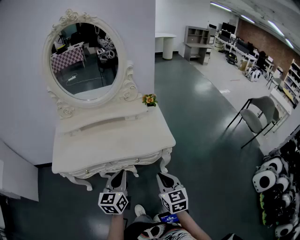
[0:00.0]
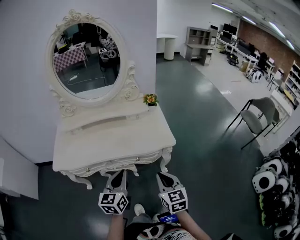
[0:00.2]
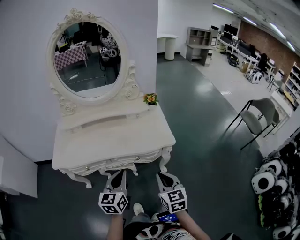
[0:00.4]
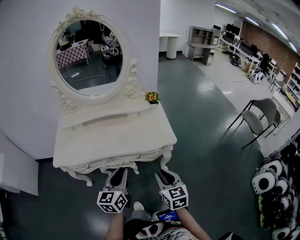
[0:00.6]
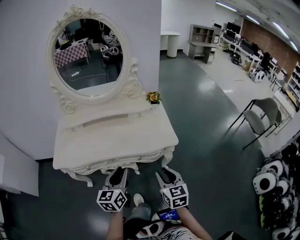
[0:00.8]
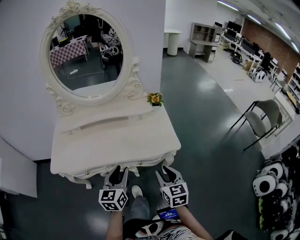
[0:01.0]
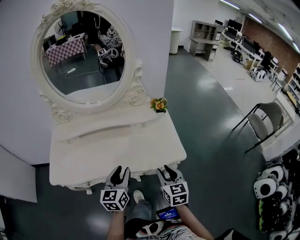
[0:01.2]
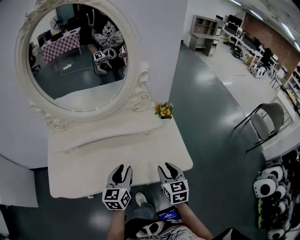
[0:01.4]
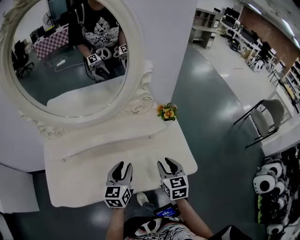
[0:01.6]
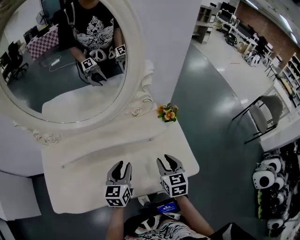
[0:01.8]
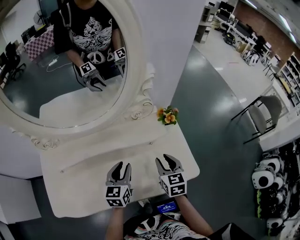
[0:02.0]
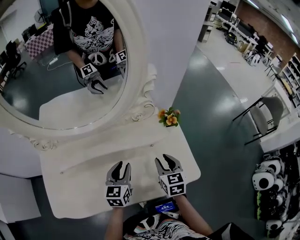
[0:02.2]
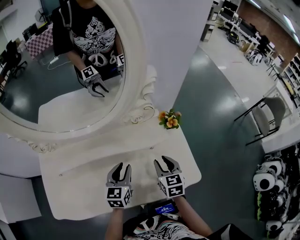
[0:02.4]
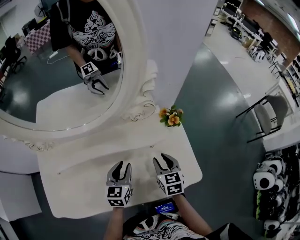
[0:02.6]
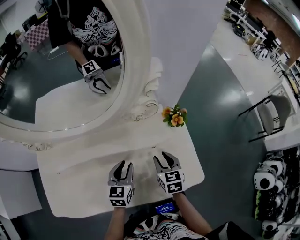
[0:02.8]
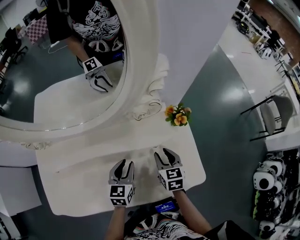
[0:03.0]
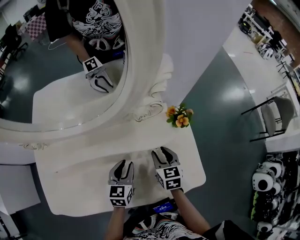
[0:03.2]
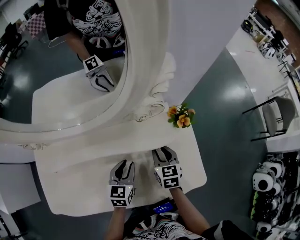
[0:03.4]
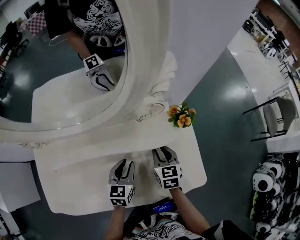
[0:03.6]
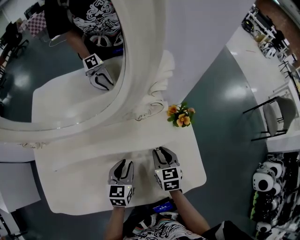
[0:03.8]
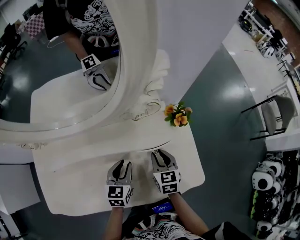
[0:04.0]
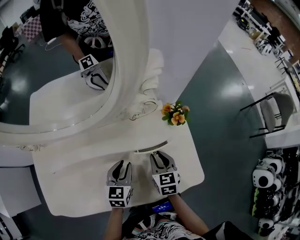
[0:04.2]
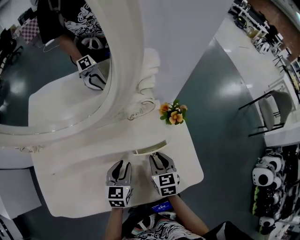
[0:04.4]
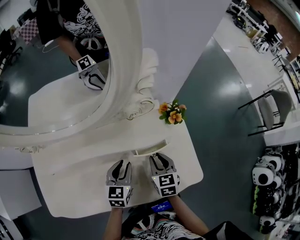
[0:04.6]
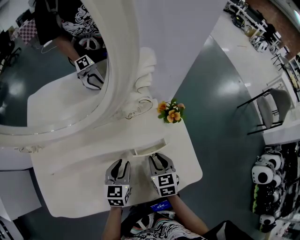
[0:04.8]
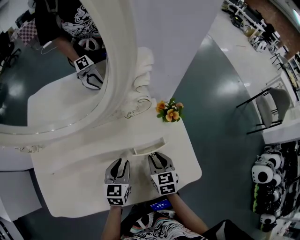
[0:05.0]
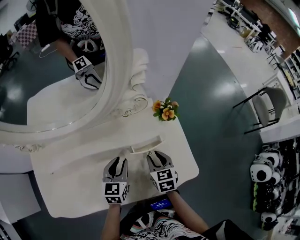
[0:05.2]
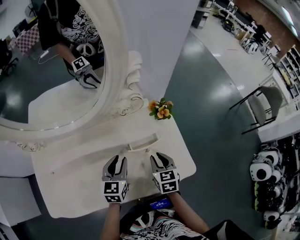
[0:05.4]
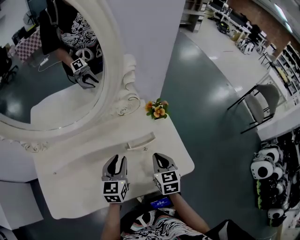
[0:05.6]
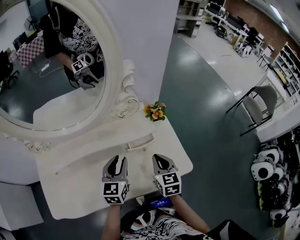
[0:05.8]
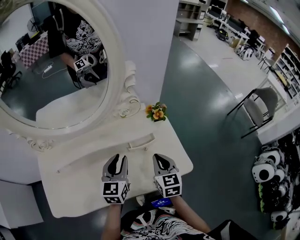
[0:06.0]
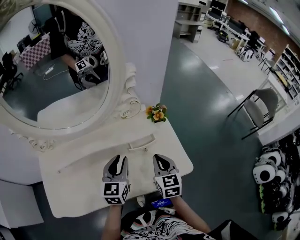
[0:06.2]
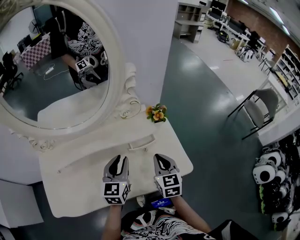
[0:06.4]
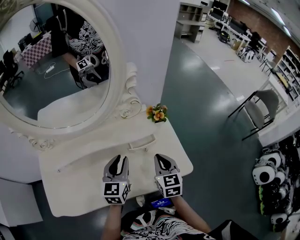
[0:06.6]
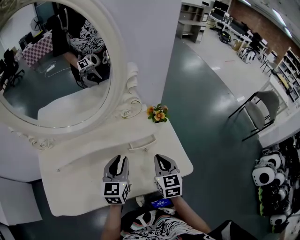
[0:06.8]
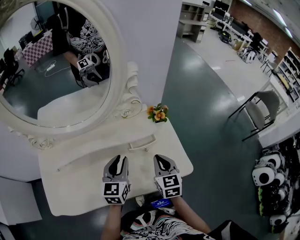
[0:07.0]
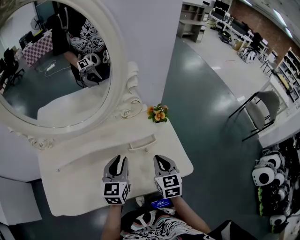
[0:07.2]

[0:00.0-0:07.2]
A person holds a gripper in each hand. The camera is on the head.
0:00.0 to 0:01.4: Both grippers move forward, roughly 25 cm. The right gripper opens up. The left gripper opens.
0:01.4 to 0:02.8: Both grippers move forward and downward, about 20 cm.
0:02.8 to 0:04.4: The grippers make only small movements.
0:04.4 to 0:05.8: The right gripper heads upward and backward, covering some 10 cm, and closes. The left gripper travels upward by some 10 cm.
0:05.8 to 0:07.2: The grippers make only small movements.

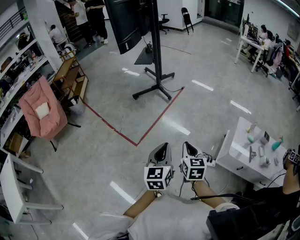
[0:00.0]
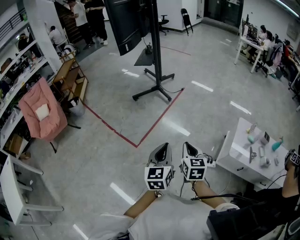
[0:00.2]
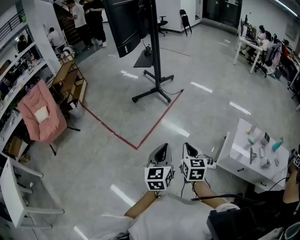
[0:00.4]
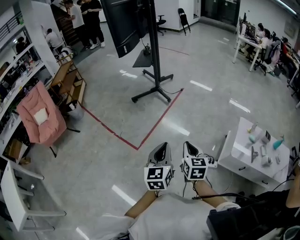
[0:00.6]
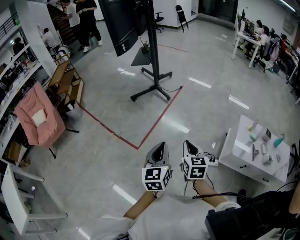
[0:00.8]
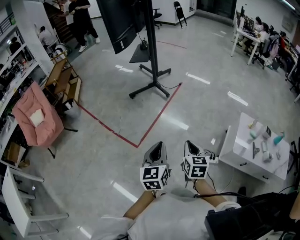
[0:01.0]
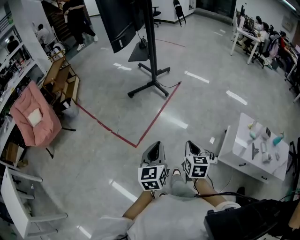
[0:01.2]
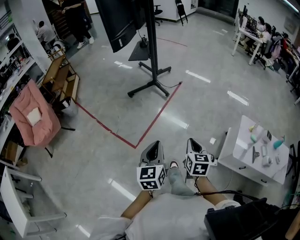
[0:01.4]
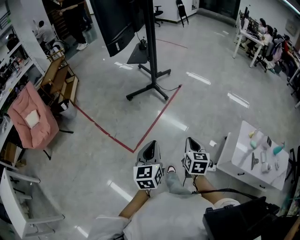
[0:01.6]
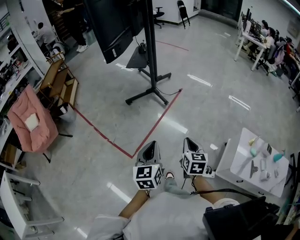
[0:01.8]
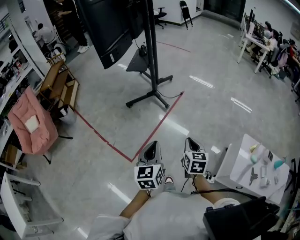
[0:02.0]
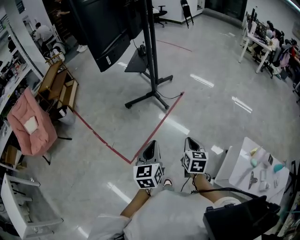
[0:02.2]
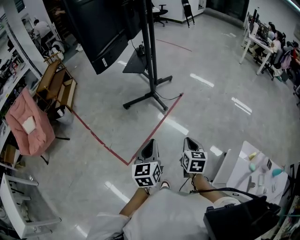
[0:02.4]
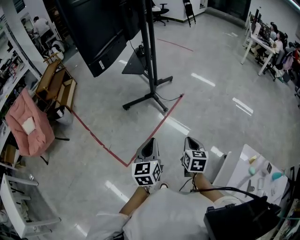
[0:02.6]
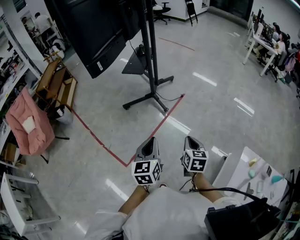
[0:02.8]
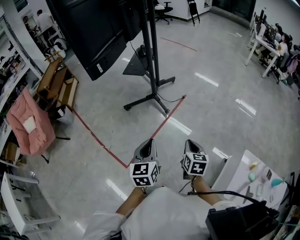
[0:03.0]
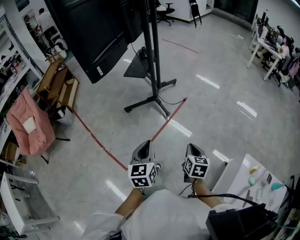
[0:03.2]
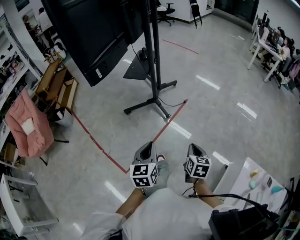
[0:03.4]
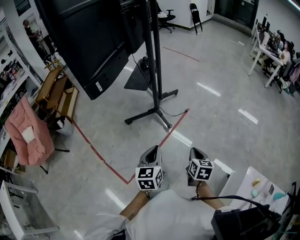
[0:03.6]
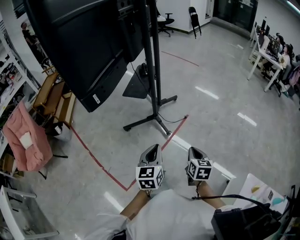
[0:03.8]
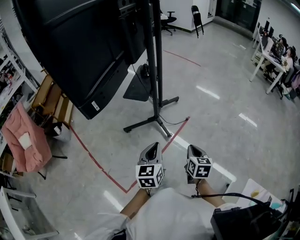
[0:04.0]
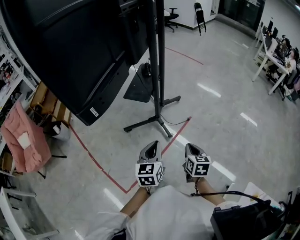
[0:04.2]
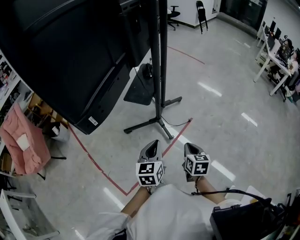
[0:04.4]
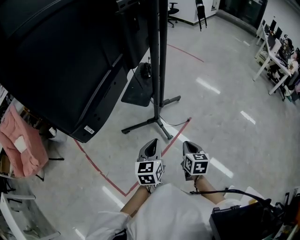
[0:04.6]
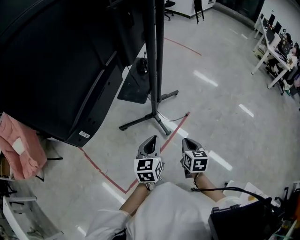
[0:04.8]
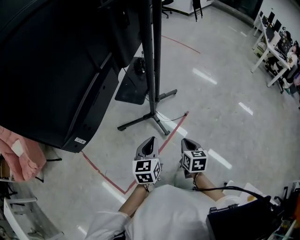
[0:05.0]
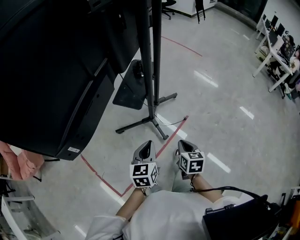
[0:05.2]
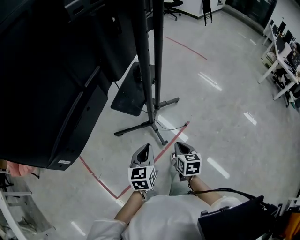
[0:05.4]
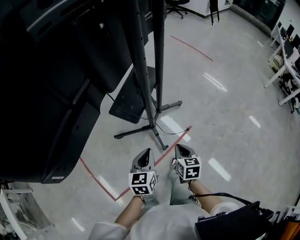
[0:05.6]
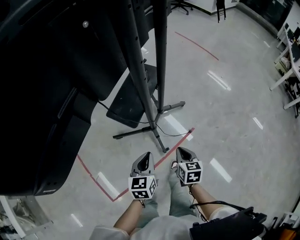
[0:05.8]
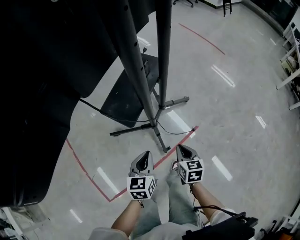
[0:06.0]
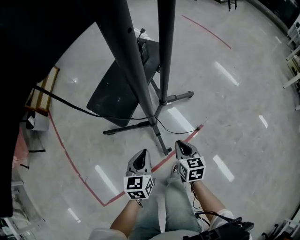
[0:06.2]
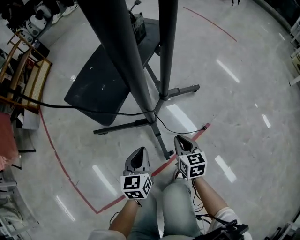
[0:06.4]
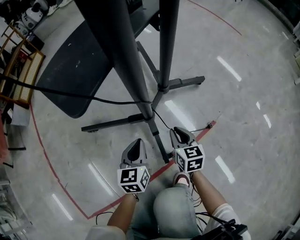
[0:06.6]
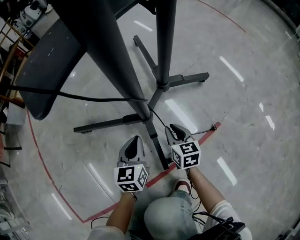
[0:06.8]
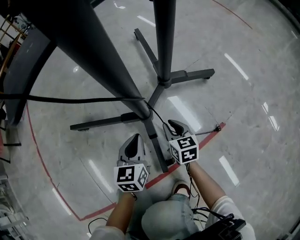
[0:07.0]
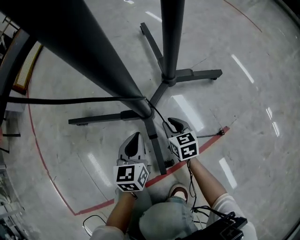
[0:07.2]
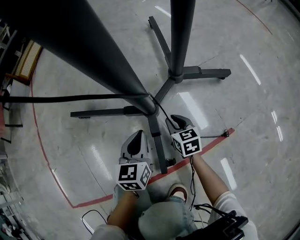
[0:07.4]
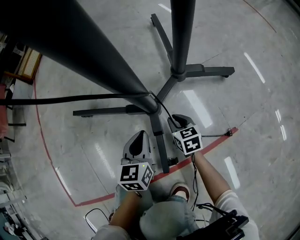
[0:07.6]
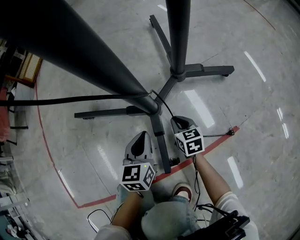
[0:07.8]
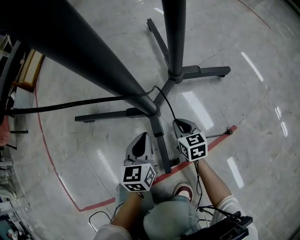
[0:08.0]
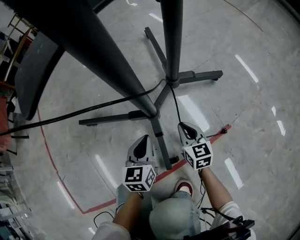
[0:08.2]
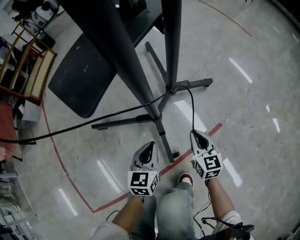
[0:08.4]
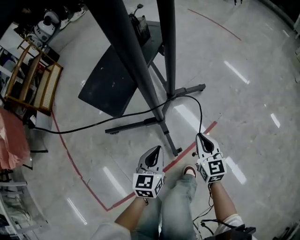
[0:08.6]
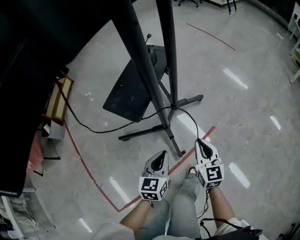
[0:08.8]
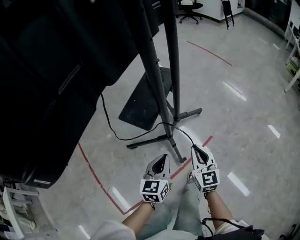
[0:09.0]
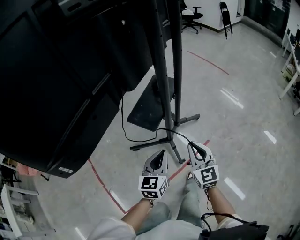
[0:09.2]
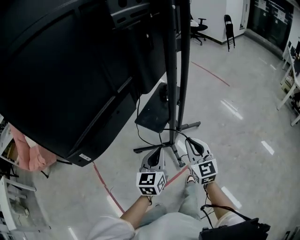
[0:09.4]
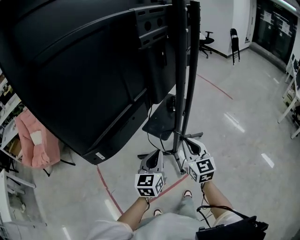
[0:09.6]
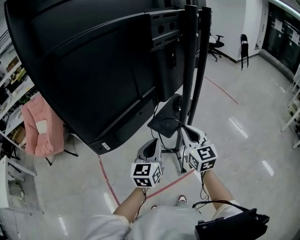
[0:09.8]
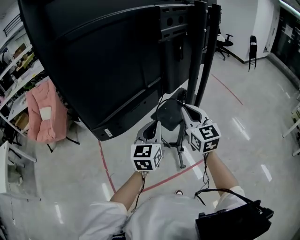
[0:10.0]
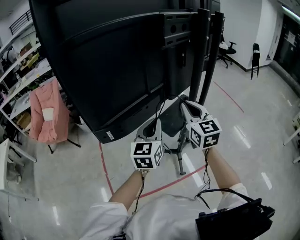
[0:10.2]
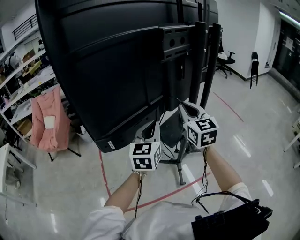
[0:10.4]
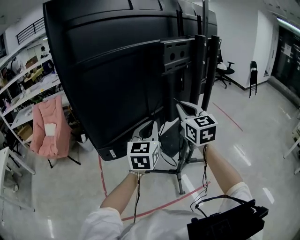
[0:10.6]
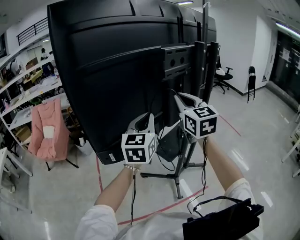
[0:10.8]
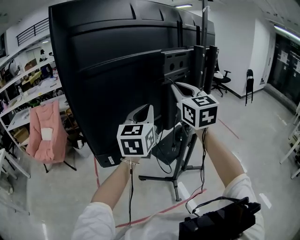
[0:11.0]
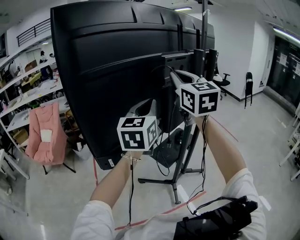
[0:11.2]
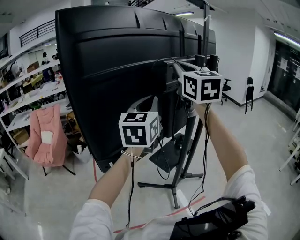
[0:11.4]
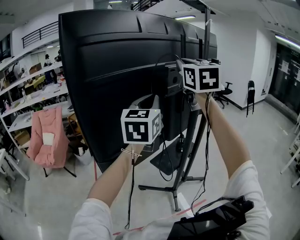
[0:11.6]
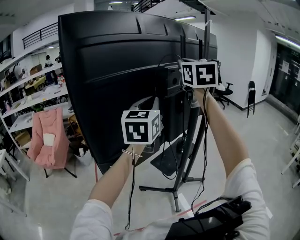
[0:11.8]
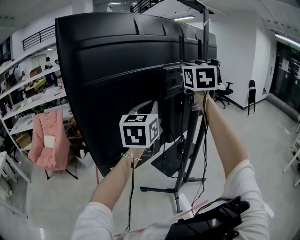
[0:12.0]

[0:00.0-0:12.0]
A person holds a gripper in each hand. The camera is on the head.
0:00.0 to 0:01.6: The right gripper goes approximately 15 cm forward. Meanwhile the left gripper goes roughly 20 cm forward and to the left.
0:01.6 to 0:03.0: Both grippers move forward, roughly 25 cm.
0:03.0 to 0:04.4: Both grippers travel together forward, about 35 cm.
0:04.4 to 0:06.0: The grippers both shift forward and downward by roughly 35 cm.
0:06.0 to 0:07.6: The two grippers go some 60 cm downward. The right gripper turns by approximately 30 degrees.
0:07.6 to 0:09.0: Both grippers move upward, roughly 60 cm. The right gripper swivels about 40 degrees, while the left gripper swivels approximately 20 degrees.
0:09.0 to 0:10.4: The grippers both shift upward and to the left by some 50 cm. The left gripper rotates some 30 degrees, while the right gripper turns by about 30 degrees.
0:10.4 to 0:12.0: Both grippers travel together upward, roughly 25 cm.

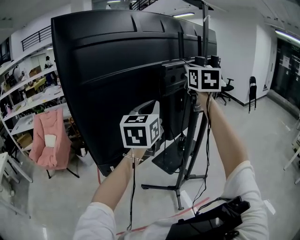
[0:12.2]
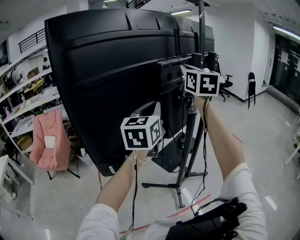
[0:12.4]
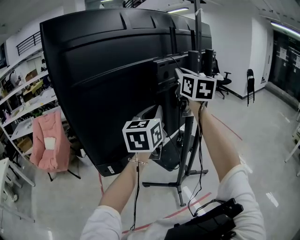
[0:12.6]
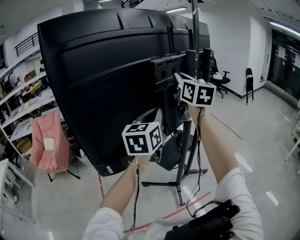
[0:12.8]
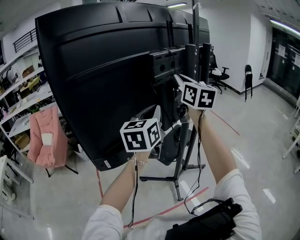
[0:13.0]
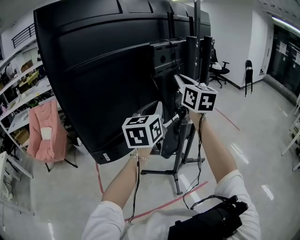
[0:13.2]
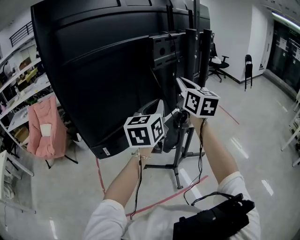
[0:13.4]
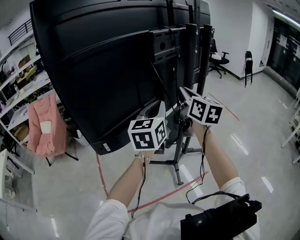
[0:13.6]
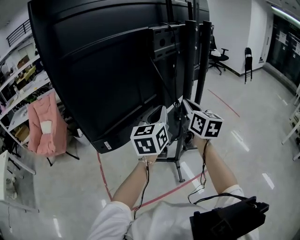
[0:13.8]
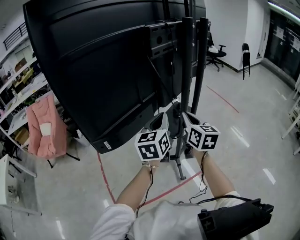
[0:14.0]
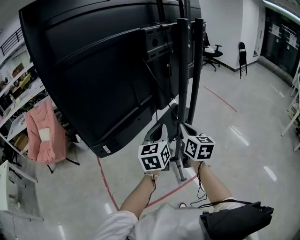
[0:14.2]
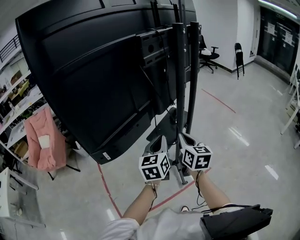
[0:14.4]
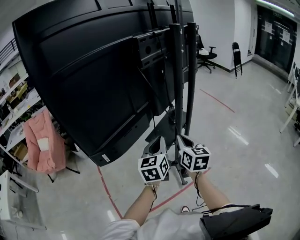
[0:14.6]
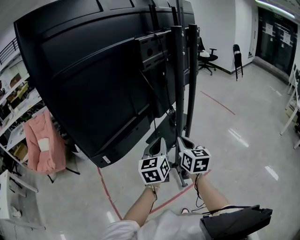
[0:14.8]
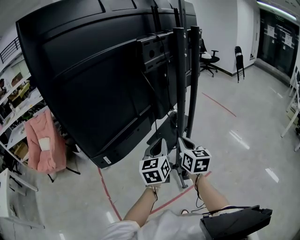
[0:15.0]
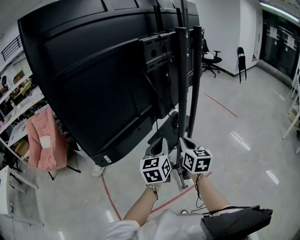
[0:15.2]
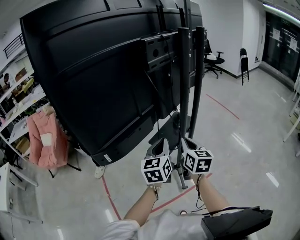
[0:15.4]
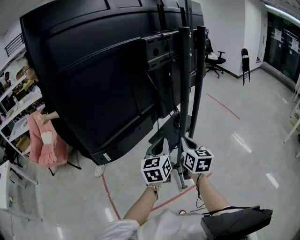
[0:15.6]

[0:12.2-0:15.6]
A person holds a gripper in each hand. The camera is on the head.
0:12.2 to 0:13.8: The left gripper heads downward, covering roughly 15 cm. The right gripper shifts some 25 cm downward, and changes its angle by approximately 30 degrees.
0:13.8 to 0:15.6: Both grippers move downward, approximately 10 cm.

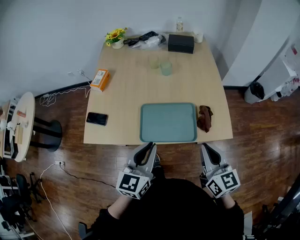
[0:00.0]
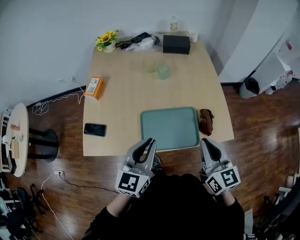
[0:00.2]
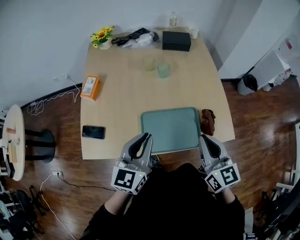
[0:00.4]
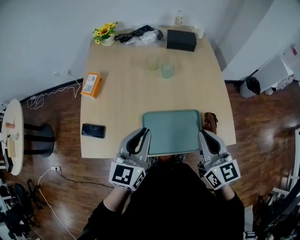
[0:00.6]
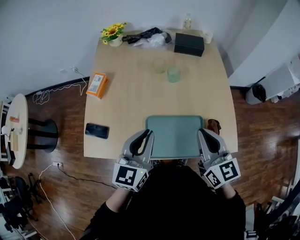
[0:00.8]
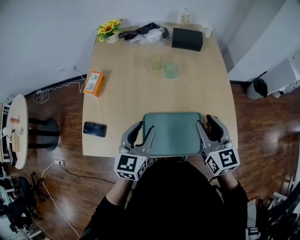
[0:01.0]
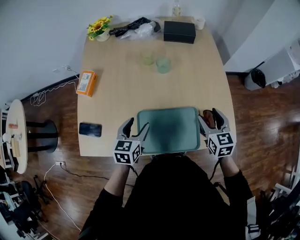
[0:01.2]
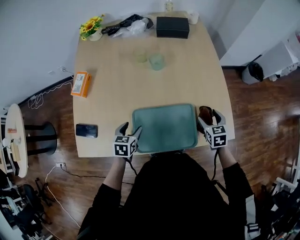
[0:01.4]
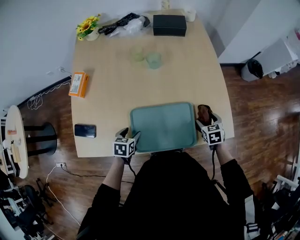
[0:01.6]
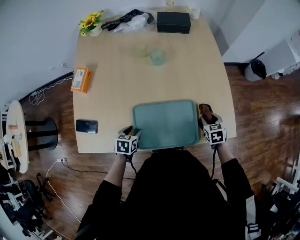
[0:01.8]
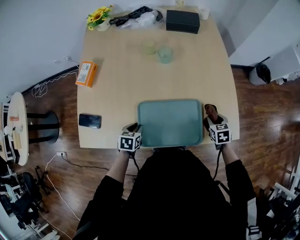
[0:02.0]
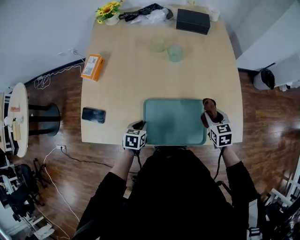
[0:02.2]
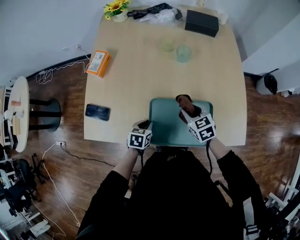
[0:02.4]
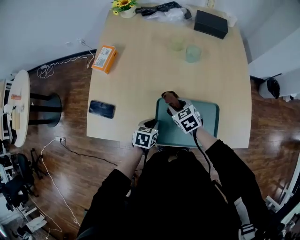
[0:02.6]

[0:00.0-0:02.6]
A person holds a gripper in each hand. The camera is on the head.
0:00.0 to 0:01.2: The left gripper shifts approximately 25 cm forward, downward and to the left, rotates some 20 degrees, and opens its fingers, while the right gripper travels forward and downward by about 25 cm, changes its angle by some 20 degrees, and opens its fingers.
0:01.2 to 0:02.6: The right gripper is displaced to the left and downward by roughly 30 cm, turns by about 40 degrees, and closes; the left gripper goes some 15 cm downward, changes its angle by some 20 degrees, and closes up.
